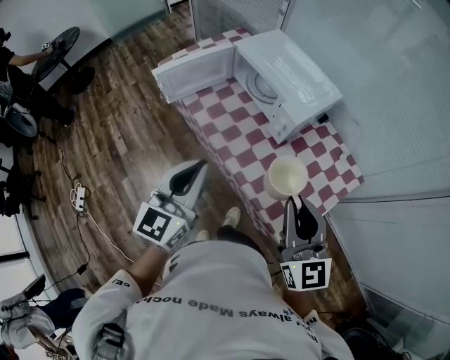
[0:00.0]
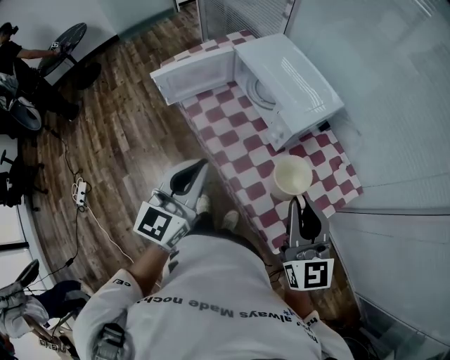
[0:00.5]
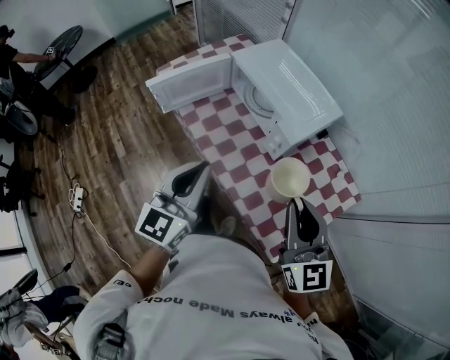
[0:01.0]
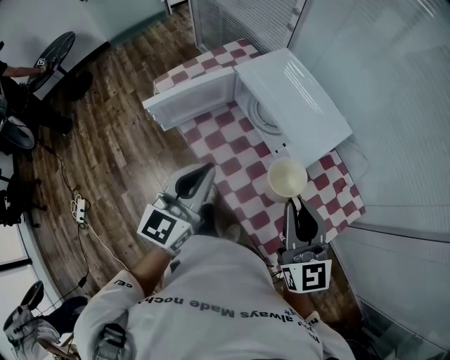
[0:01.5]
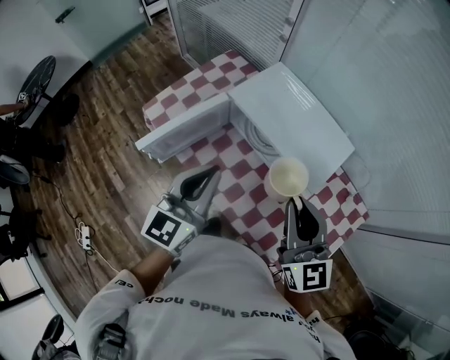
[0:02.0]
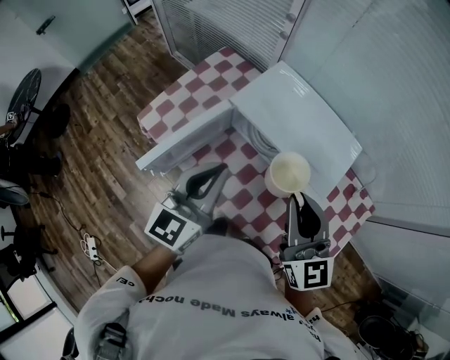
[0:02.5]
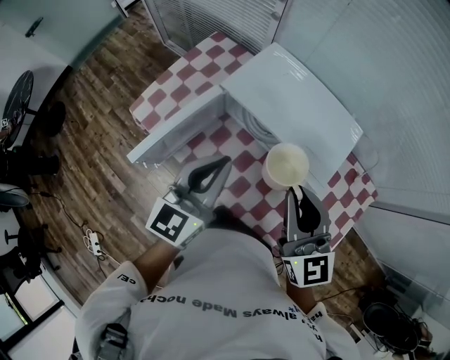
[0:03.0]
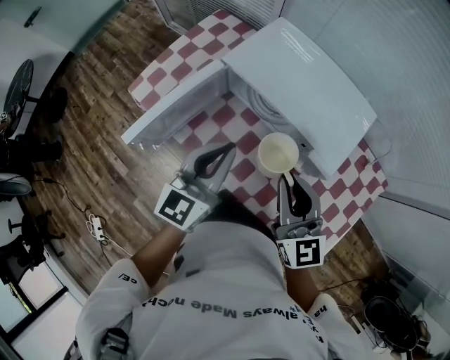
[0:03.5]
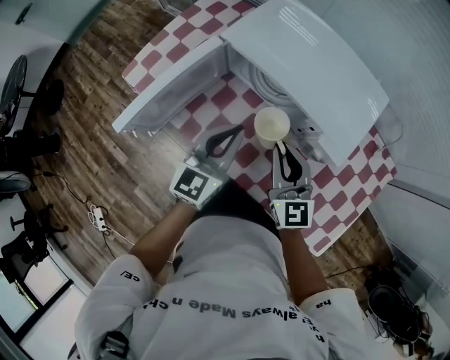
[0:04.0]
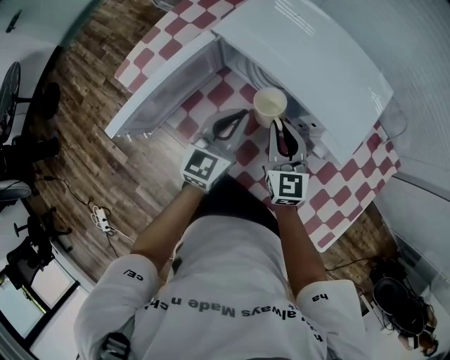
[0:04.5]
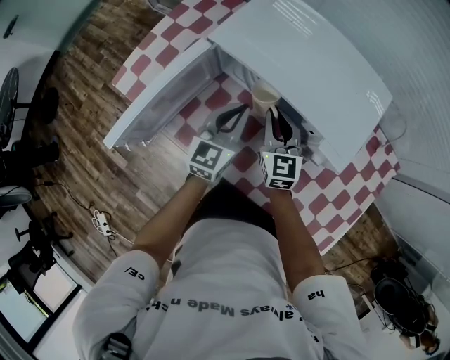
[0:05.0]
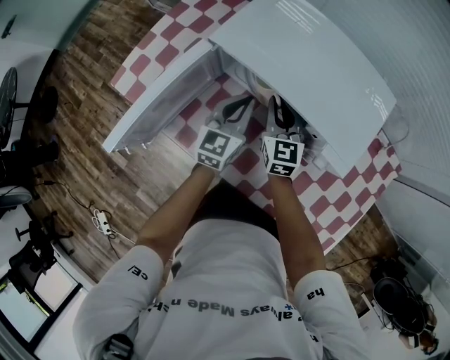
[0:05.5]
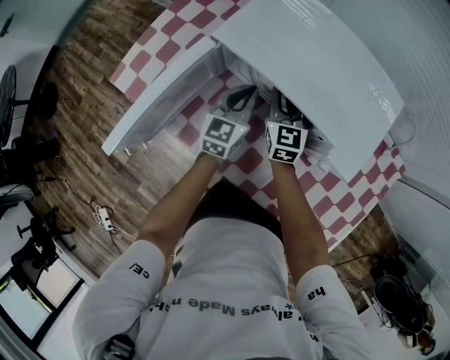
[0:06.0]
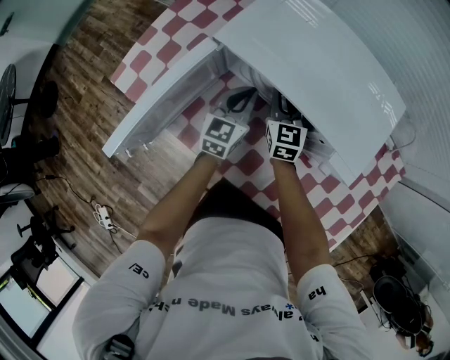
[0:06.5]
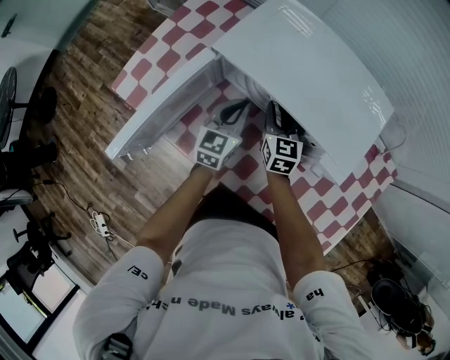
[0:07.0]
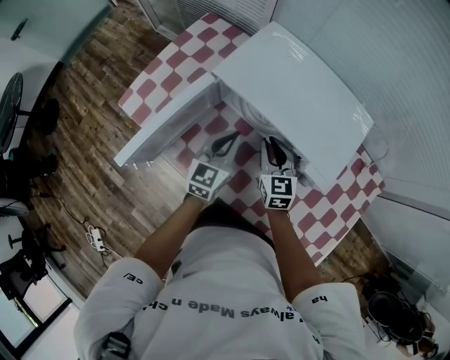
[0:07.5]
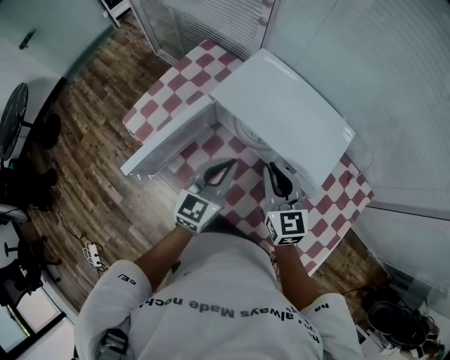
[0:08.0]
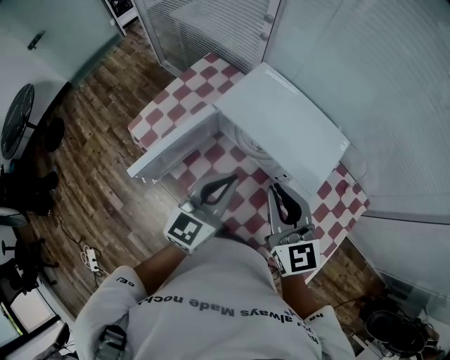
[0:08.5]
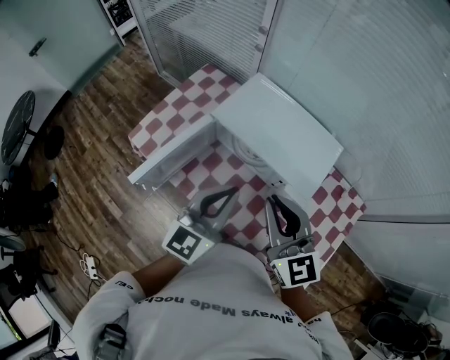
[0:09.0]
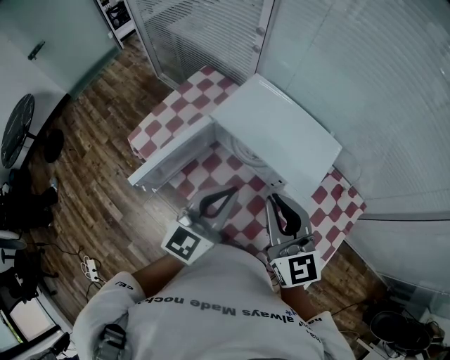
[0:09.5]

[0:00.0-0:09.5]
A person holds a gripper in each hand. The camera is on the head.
0:00.0 to 0:02.0: The two grippers go approximately 30 cm forward.
0:02.0 to 0:04.0: Both grippers travel together downward, approximately 20 cm.
0:04.0 to 0:05.5: Both grippers travel together forward and downward, about 15 cm.
0:05.5 to 0:07.5: The right gripper moves some 5 cm, while the left gripper shifts by about 5 cm.
0:07.5 to 0:09.5: The grippers both shift upward and backward by about 30 cm. The right gripper swivels some 20 degrees.

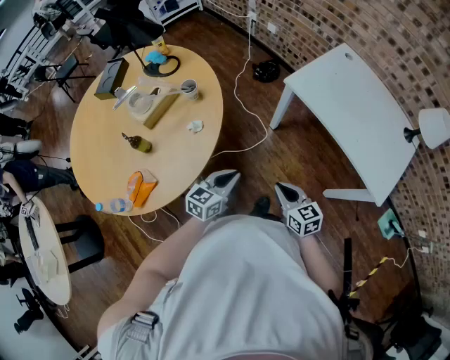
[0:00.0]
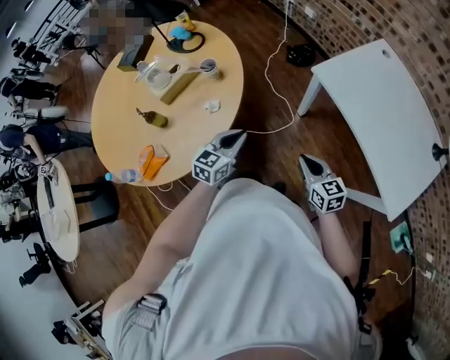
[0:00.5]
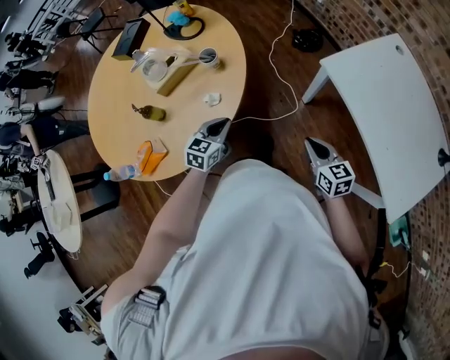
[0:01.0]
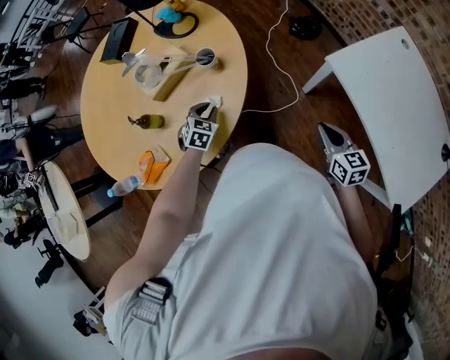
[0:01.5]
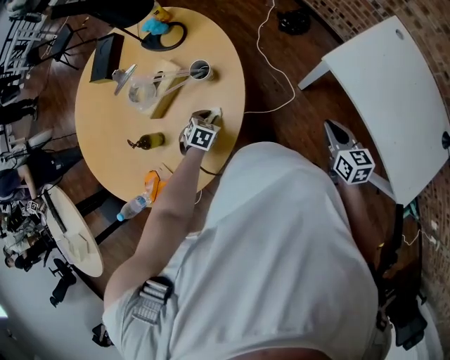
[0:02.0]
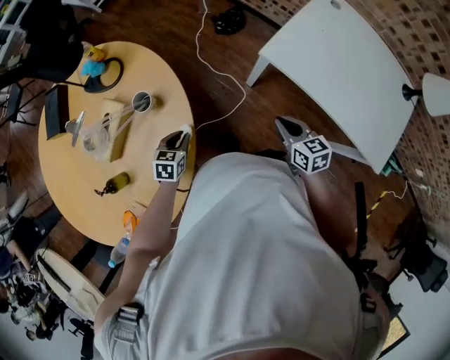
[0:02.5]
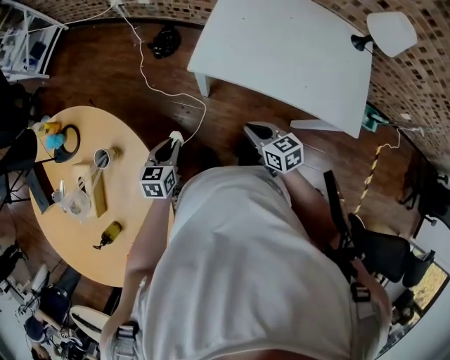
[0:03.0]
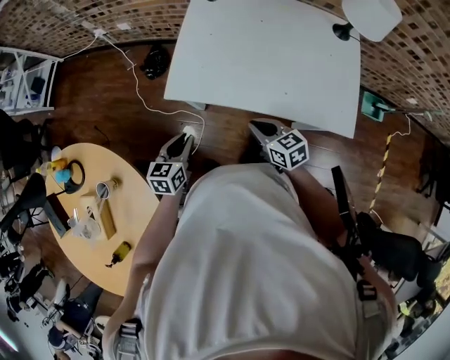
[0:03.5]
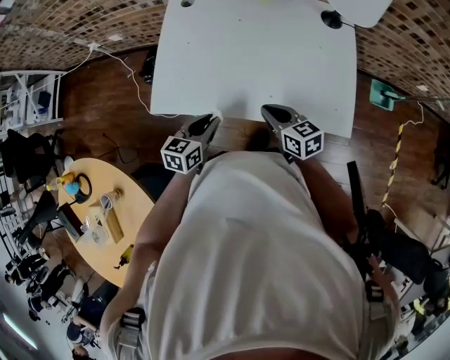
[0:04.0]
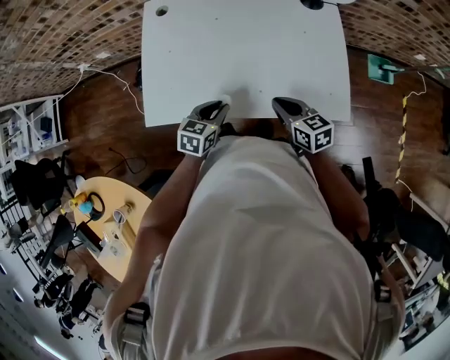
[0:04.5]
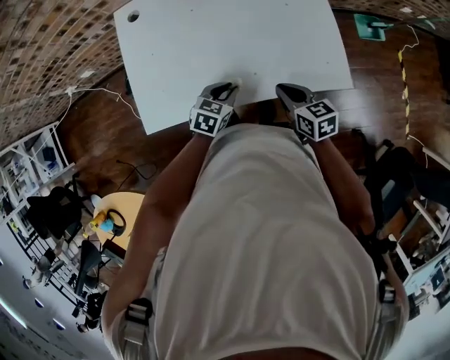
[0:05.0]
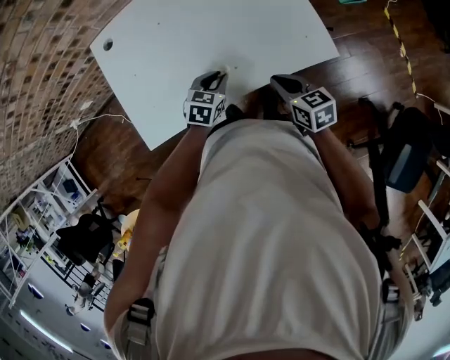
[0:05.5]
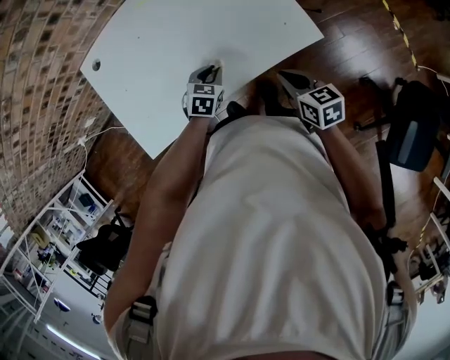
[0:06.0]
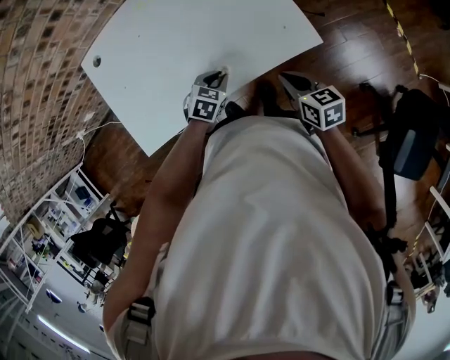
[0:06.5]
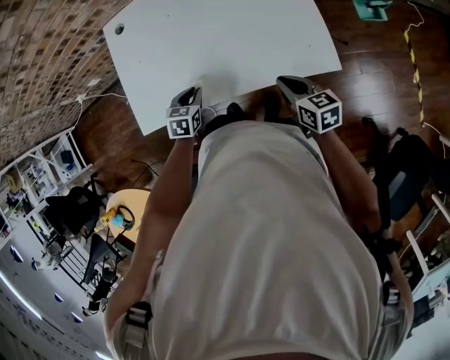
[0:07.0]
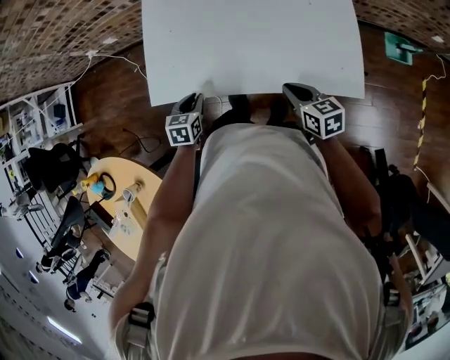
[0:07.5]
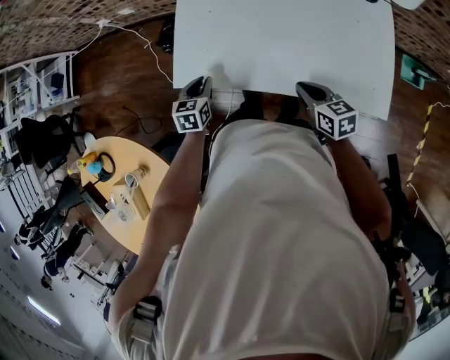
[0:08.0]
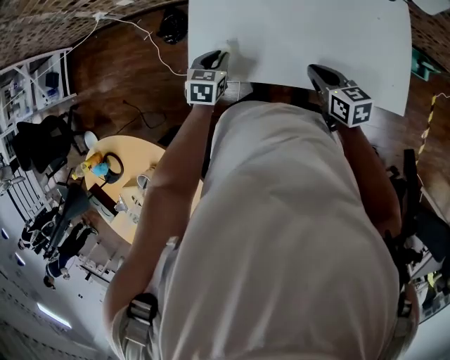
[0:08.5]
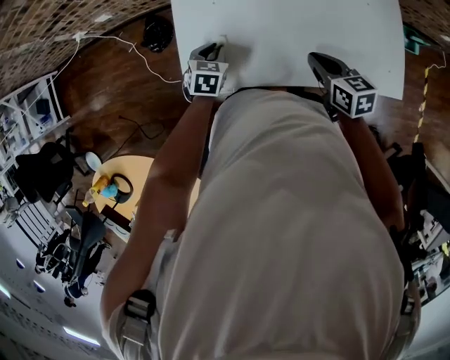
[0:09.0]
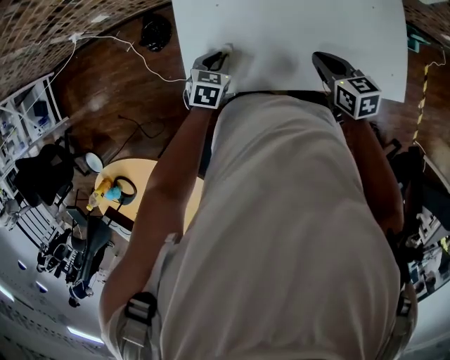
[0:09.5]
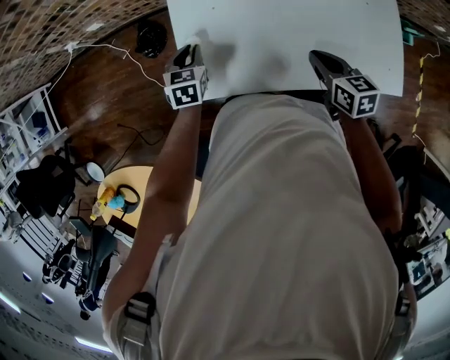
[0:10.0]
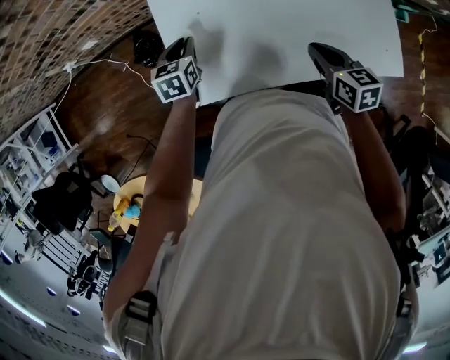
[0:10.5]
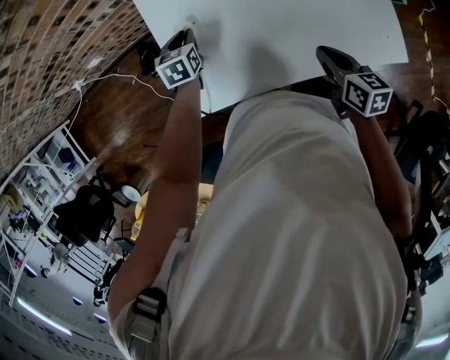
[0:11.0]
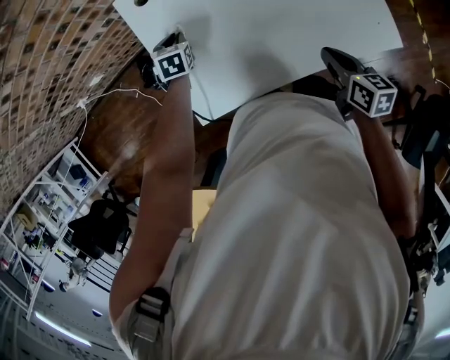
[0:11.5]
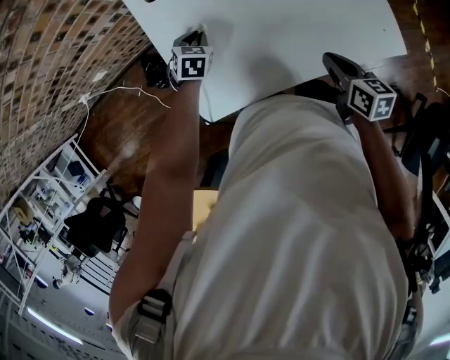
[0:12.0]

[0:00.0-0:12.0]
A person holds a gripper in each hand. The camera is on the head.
0:00.0 to 0:02.0: The left gripper shifts some 35 cm forward, downward and to the left, tips its fingers downward by some 50 degrees, and opens up; the right gripper shifts about 25 cm forward.
0:02.0 to 0:04.0: The right gripper shifts by about 35 cm, and rotates some 30 degrees. Meanwhile the left gripper shifts by some 60 cm, and points its fingers roughly 30 degrees further upward.
0:04.0 to 0:06.0: The right gripper ends up about 20 cm from where it was, and swivels some 40 degrees. Meanwhile the left gripper changes place by some 25 cm, and rolls clockwise, seen from behind, by roughly 40 degrees.
0:06.0 to 0:08.0: The left gripper shifts by about 30 cm, and twists about 40 degrees counterclockwise, seen from behind. The right gripper moves approximately 20 cm, and swivels roughly 40 degrees.
0:08.0 to 0:10.0: The right gripper moves forward, about 10 cm, while the left gripper shifts some 15 cm forward.
0:10.0 to 0:12.0: The right gripper shifts approximately 5 cm to the right, and turns by approximately 20 degrees. Meanwhile the left gripper shifts some 15 cm to the right and forward, and swivels approximately 30 degrees.

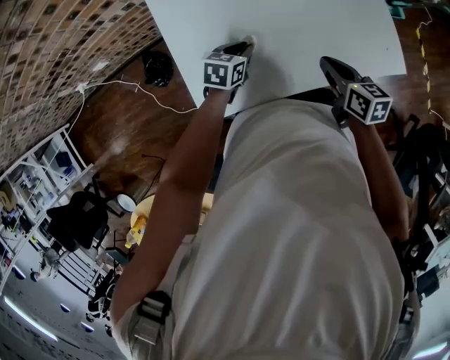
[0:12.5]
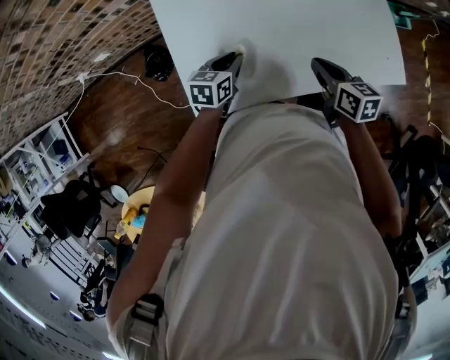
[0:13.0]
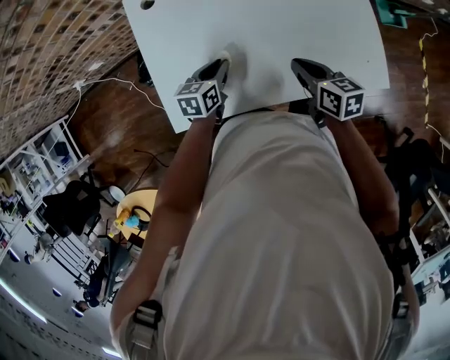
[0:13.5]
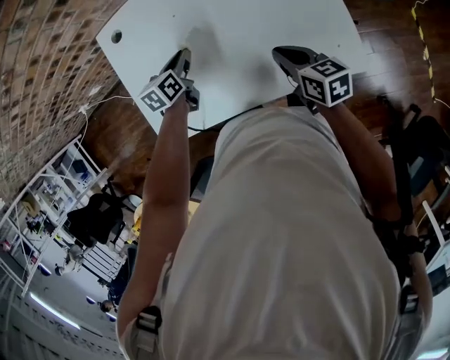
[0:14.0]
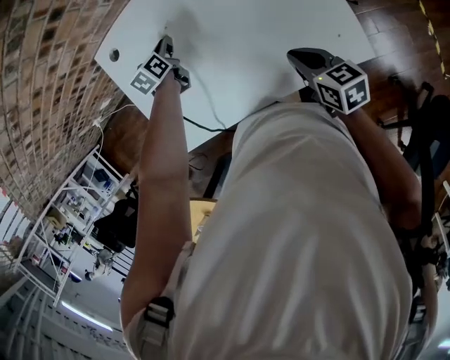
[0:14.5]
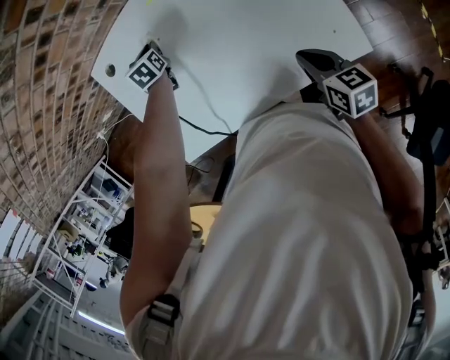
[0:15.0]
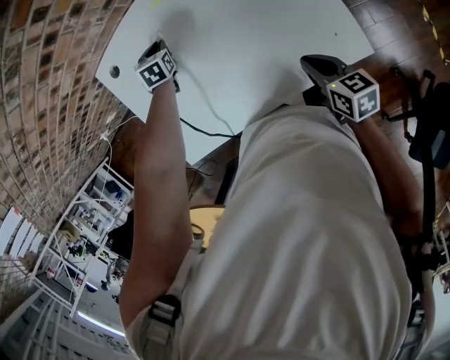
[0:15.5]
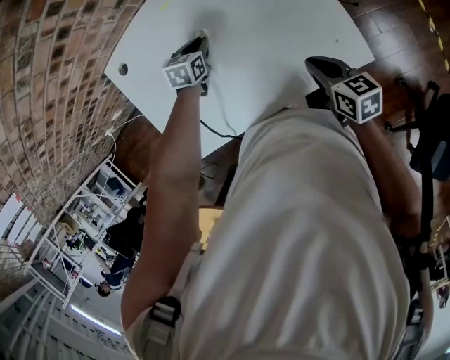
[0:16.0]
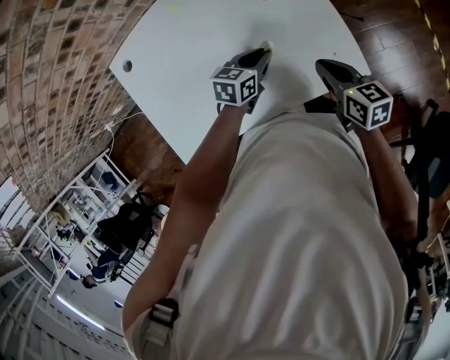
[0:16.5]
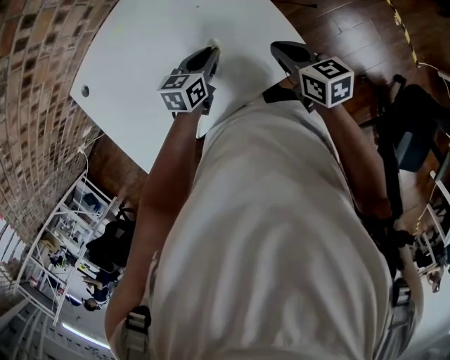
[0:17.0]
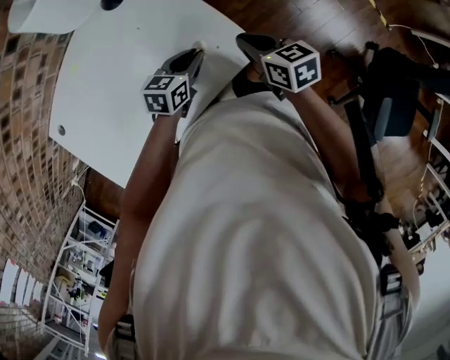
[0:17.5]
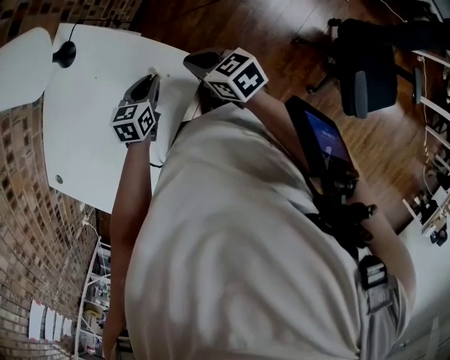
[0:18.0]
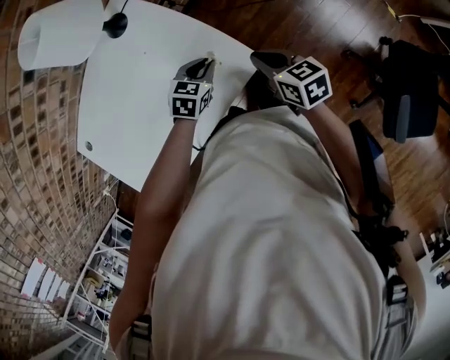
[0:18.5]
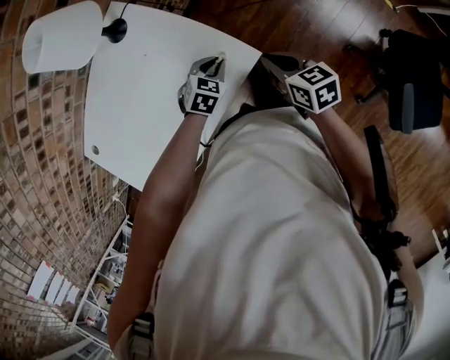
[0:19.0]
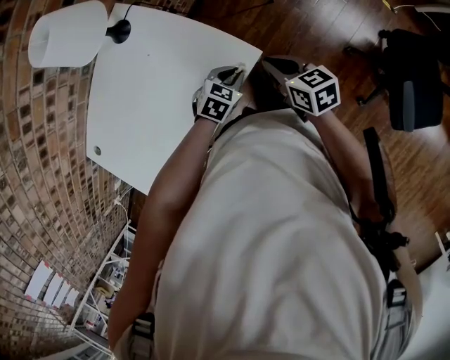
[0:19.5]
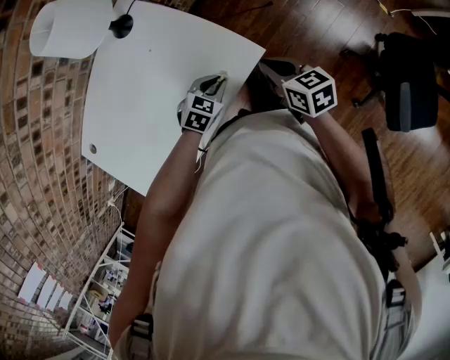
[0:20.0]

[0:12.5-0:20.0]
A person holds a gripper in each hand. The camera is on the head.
0:12.5 to 0:14.5: The left gripper goes some 20 cm forward, and turns by about 30 degrees. Meanwhile the right gripper heads to the right, covering approximately 15 cm.
0:14.5 to 0:16.5: The left gripper moves approximately 30 cm, and swivels approximately 40 degrees; the right gripper ends up about 10 cm from where it was.
0:16.5 to 0:18.0: Both grippers travel together to the right, roughly 15 cm. The left gripper swivels approximately 20 degrees.
0:18.0 to 0:20.0: Both grippers travel together backward, about 10 cm. The left gripper swivels roughly 30 degrees.
